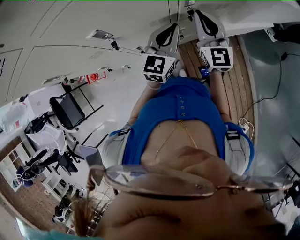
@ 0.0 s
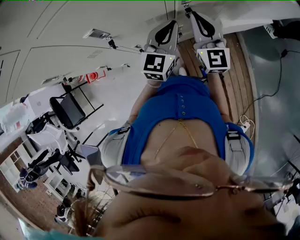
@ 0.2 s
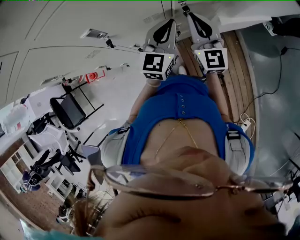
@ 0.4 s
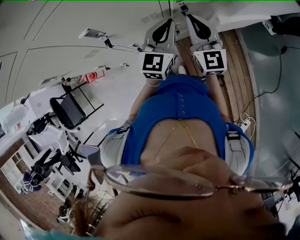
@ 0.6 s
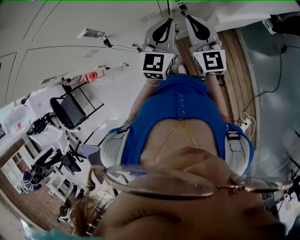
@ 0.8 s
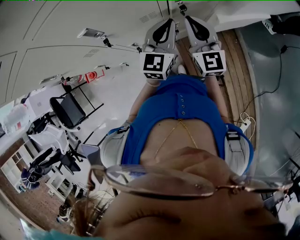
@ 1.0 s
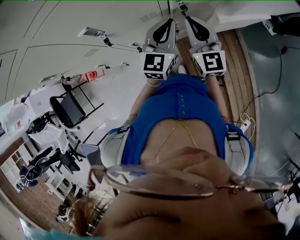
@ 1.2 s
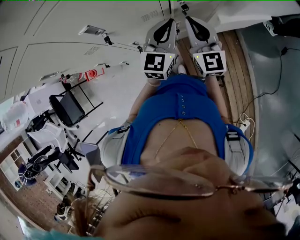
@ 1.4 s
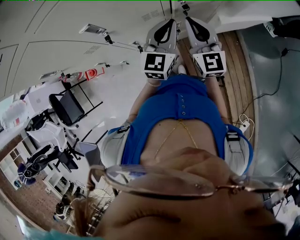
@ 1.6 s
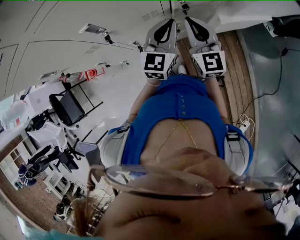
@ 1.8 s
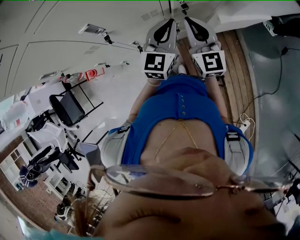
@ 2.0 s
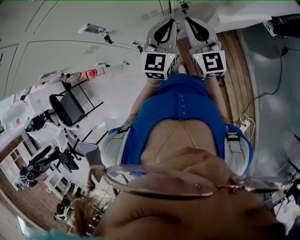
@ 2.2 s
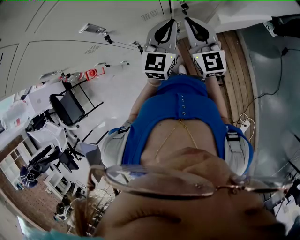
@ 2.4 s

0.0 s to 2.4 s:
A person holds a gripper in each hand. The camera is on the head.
0.0 to 1.2 s: The right gripper changes place by roughly 5 cm.
1.2 to 2.4 s: The two grippers keep their place.

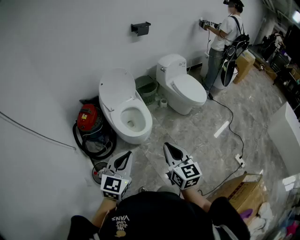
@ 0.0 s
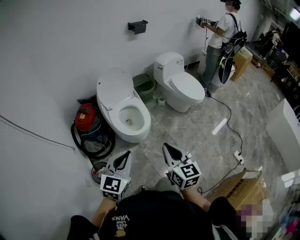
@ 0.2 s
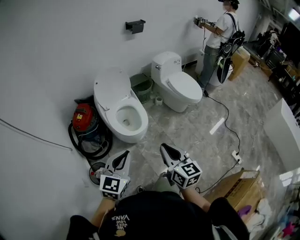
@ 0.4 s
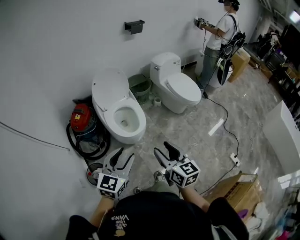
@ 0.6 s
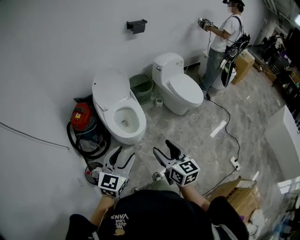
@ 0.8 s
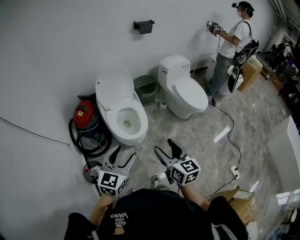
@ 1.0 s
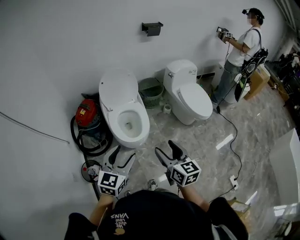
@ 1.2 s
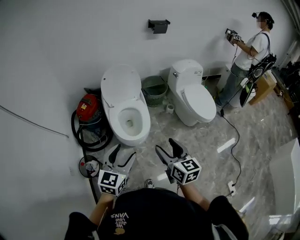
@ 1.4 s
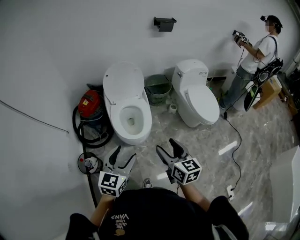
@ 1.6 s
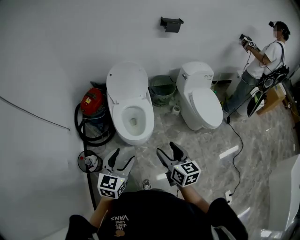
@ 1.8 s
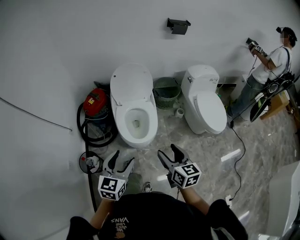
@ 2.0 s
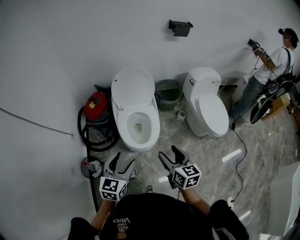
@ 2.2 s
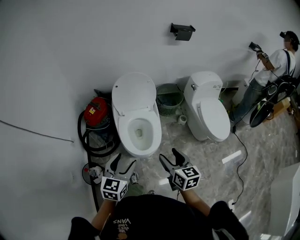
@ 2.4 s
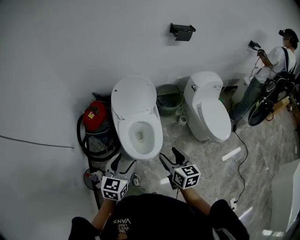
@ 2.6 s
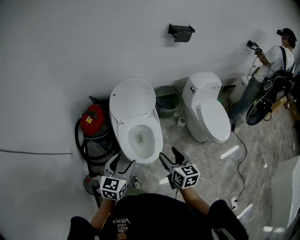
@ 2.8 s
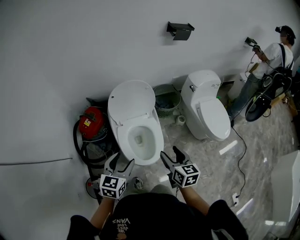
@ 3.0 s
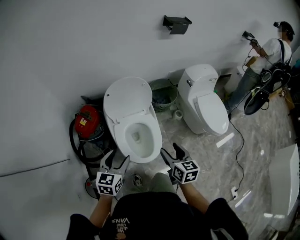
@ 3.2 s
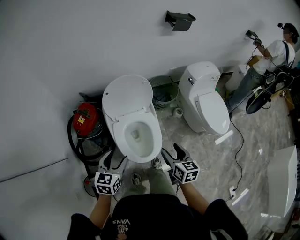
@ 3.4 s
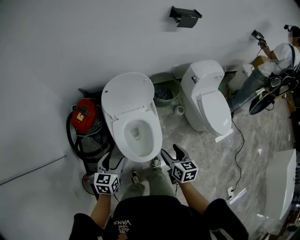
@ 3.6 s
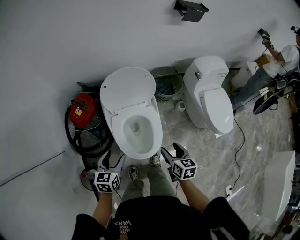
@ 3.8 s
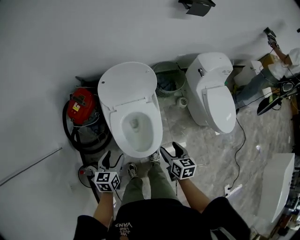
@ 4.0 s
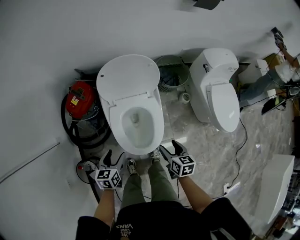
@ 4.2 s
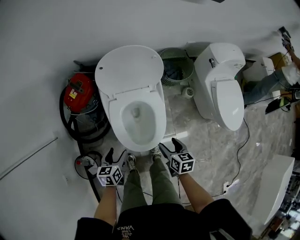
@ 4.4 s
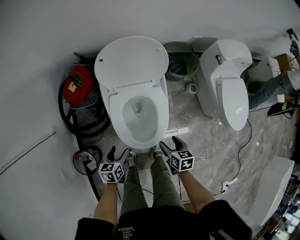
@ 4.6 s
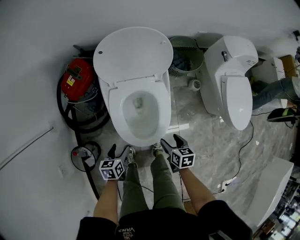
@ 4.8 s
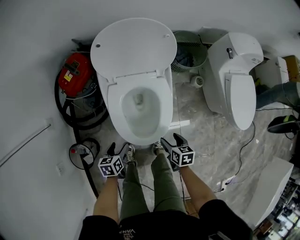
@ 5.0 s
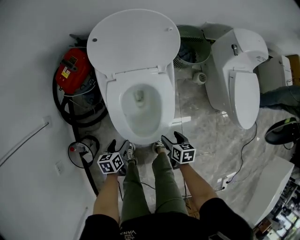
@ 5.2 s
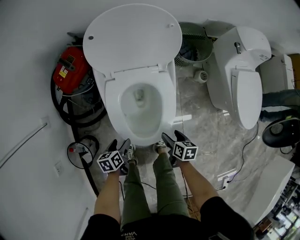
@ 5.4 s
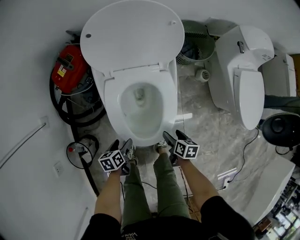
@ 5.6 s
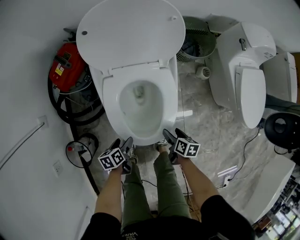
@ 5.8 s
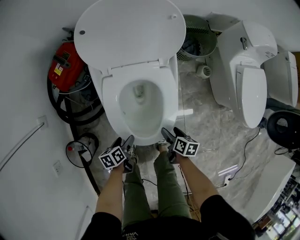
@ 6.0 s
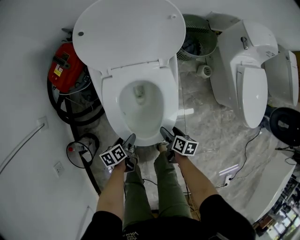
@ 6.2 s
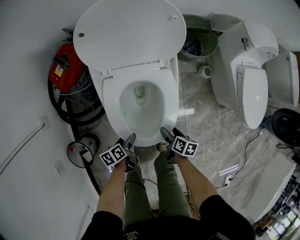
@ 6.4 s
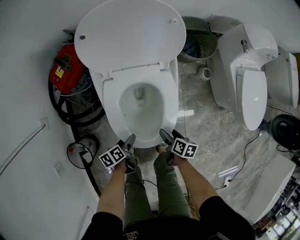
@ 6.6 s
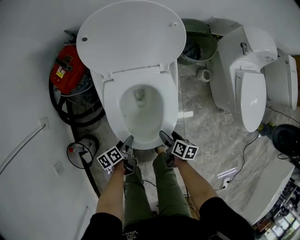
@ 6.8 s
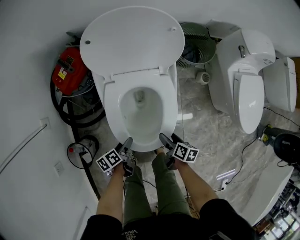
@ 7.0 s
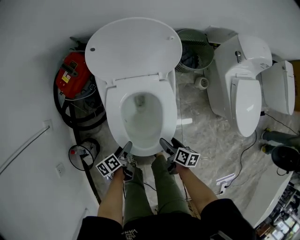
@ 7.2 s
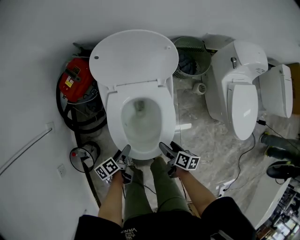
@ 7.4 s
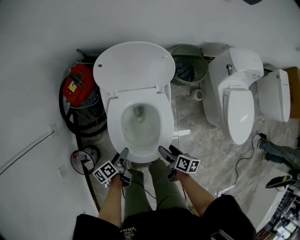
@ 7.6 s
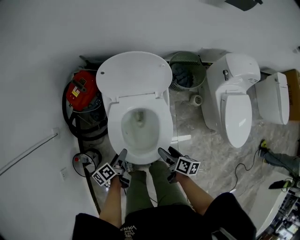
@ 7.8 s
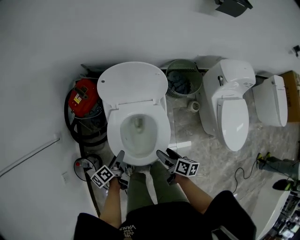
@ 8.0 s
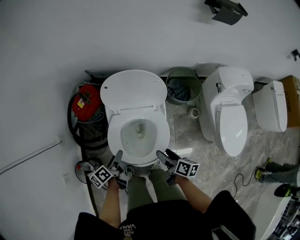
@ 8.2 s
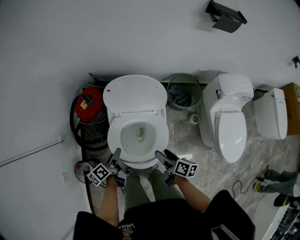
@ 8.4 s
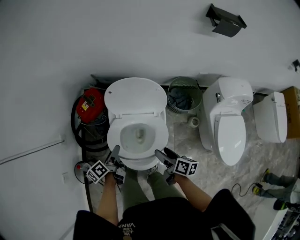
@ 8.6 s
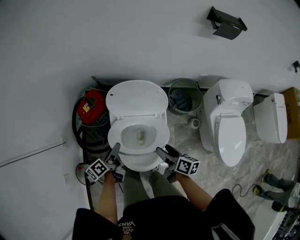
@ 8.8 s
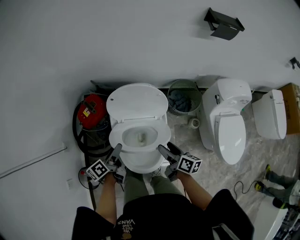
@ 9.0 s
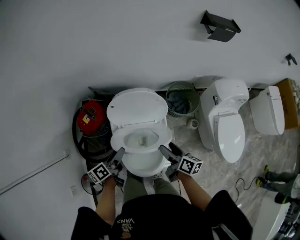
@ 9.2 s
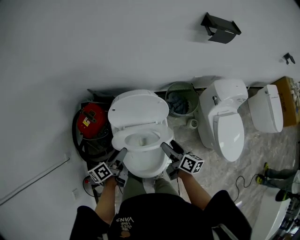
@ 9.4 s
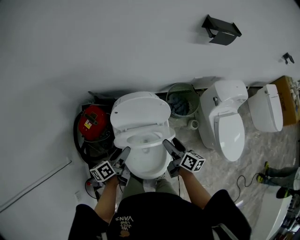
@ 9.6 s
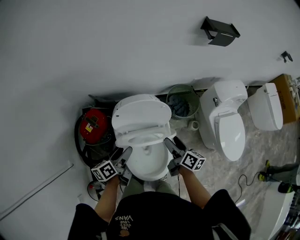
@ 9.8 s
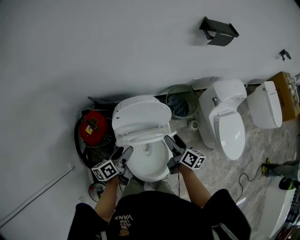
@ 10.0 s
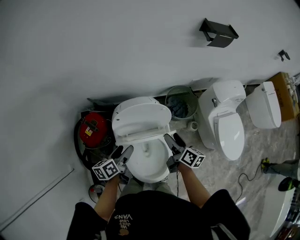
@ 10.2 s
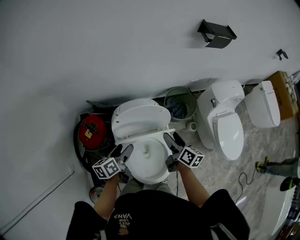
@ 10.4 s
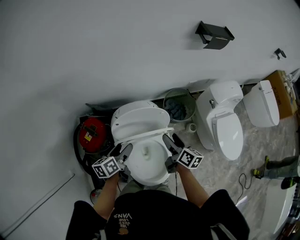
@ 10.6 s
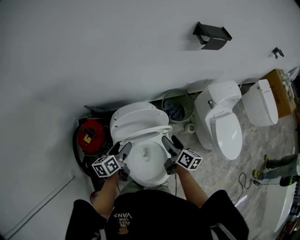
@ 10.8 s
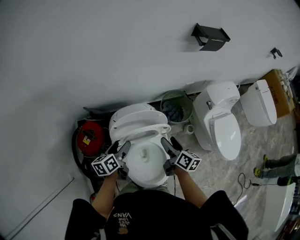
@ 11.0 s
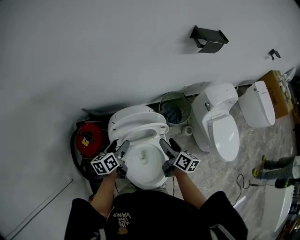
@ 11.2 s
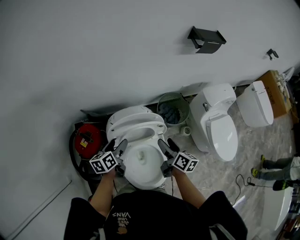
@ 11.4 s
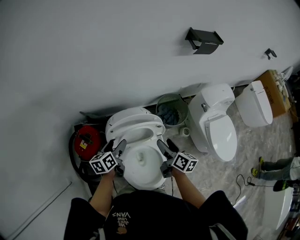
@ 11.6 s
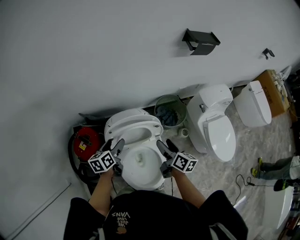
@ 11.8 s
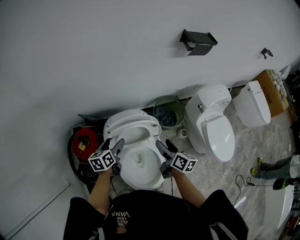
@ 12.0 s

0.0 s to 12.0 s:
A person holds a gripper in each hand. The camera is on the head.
0.0 to 1.6 s: The two grippers go approximately 15 cm forward and to the right. The left gripper changes its angle by some 20 degrees, and opens its fingers. Meanwhile the right gripper changes its angle by roughly 20 degrees, and opens.
1.6 to 3.0 s: The right gripper heads forward, covering about 25 cm. The left gripper moves forward and to the left, about 25 cm.
3.0 to 4.4 s: Both grippers travel together downward, approximately 25 cm. The right gripper rotates about 20 degrees. Meanwhile the left gripper rotates about 40 degrees.
4.4 to 6.0 s: The two grippers go approximately 20 cm downward. The right gripper changes its angle by approximately 30 degrees. The left gripper rotates roughly 30 degrees.
6.0 to 7.6 s: The two grippers go about 15 cm upward. The left gripper changes its angle by approximately 20 degrees.
7.6 to 9.0 s: Both grippers move upward and forward, roughly 25 cm. The left gripper changes its angle by about 20 degrees, while the right gripper swivels about 20 degrees.
9.0 to 10.4 s: Both grippers travel together forward, approximately 10 cm. The right gripper changes its angle by roughly 20 degrees, while the left gripper changes its angle by some 30 degrees.
10.4 to 12.0 s: The left gripper shifts roughly 5 cm forward.

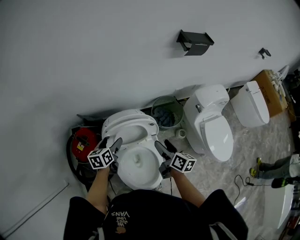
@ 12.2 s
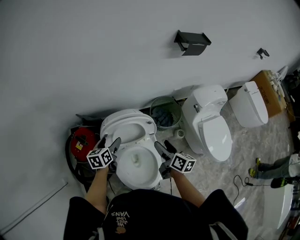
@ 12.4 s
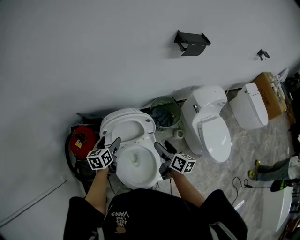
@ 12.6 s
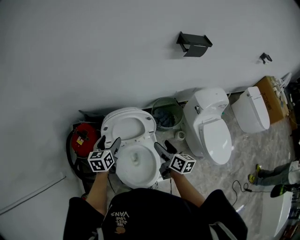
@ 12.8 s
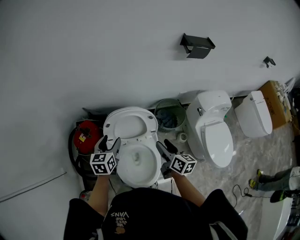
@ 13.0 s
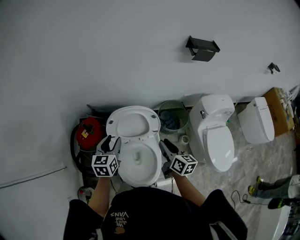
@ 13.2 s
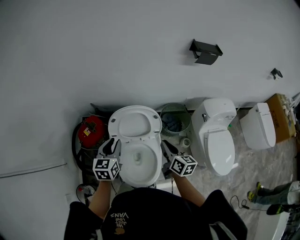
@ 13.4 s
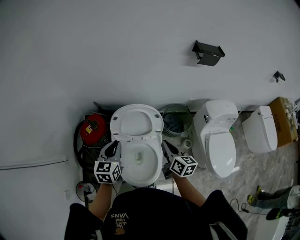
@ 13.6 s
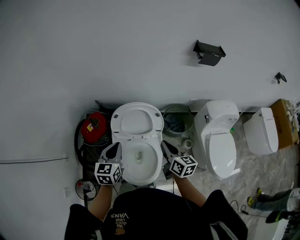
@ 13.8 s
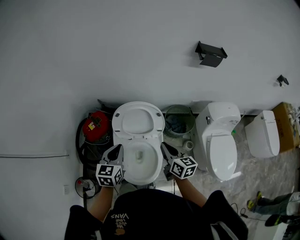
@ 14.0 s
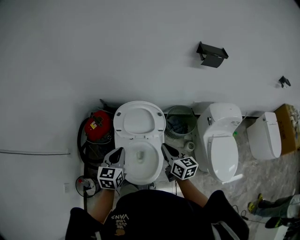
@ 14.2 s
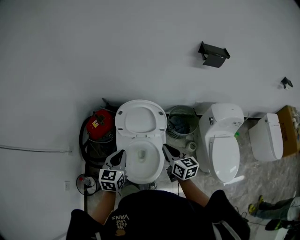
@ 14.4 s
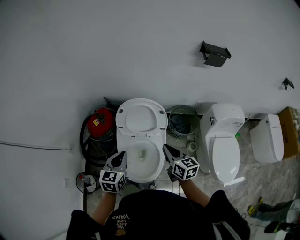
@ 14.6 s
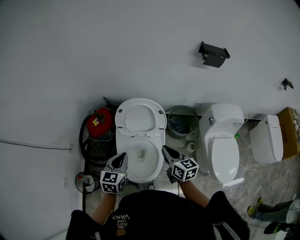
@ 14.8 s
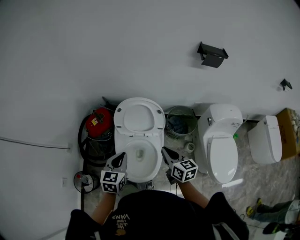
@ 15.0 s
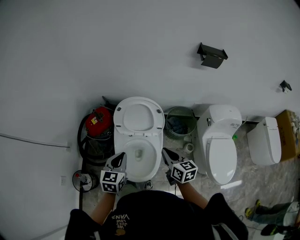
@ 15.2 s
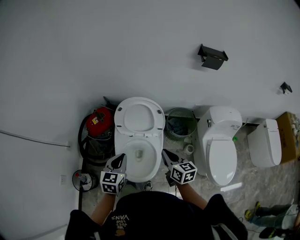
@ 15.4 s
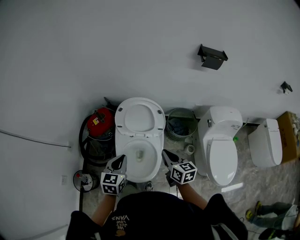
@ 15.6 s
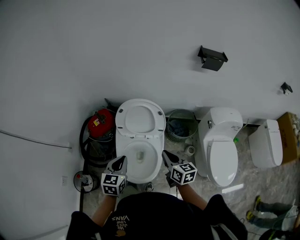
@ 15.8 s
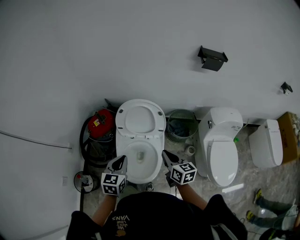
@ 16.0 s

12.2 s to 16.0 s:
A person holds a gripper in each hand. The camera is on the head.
12.2 to 13.4 s: The left gripper is displaced backward and upward by some 15 cm, rotates about 20 degrees, and closes. The right gripper heads backward, covering roughly 5 cm, and closes up.
13.4 to 14.8 s: The right gripper is displaced backward by about 5 cm; the left gripper moves backward, some 15 cm.
14.8 to 16.0 s: There are only small adjustments of the grippers.

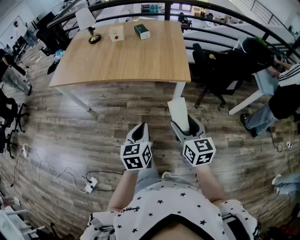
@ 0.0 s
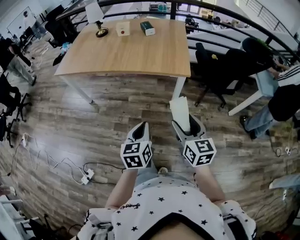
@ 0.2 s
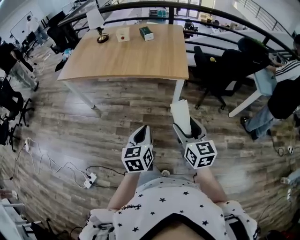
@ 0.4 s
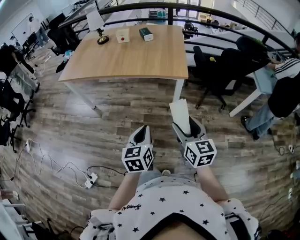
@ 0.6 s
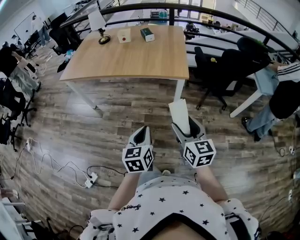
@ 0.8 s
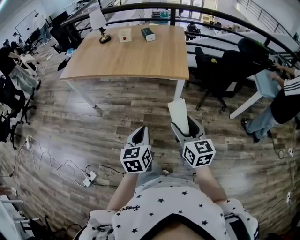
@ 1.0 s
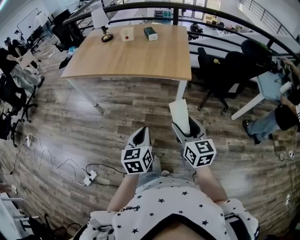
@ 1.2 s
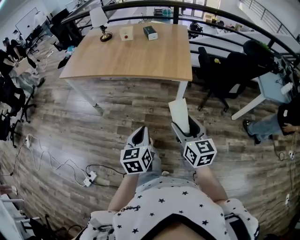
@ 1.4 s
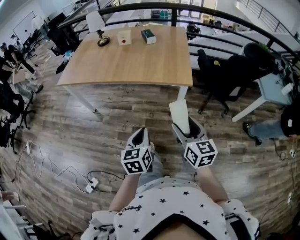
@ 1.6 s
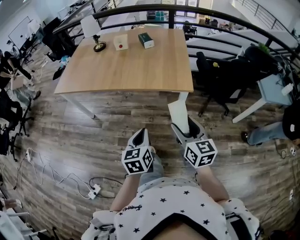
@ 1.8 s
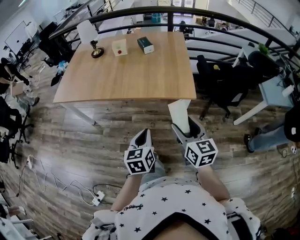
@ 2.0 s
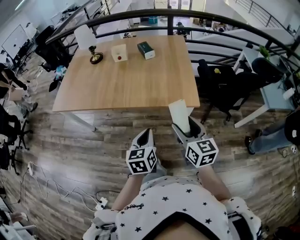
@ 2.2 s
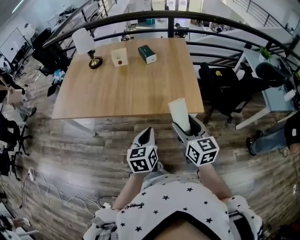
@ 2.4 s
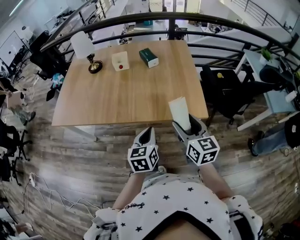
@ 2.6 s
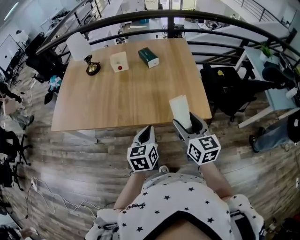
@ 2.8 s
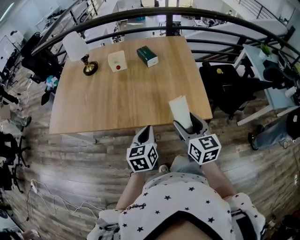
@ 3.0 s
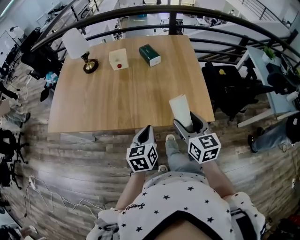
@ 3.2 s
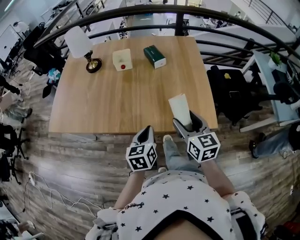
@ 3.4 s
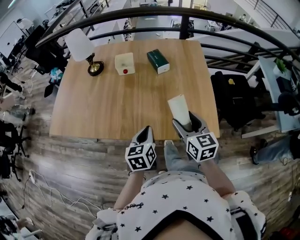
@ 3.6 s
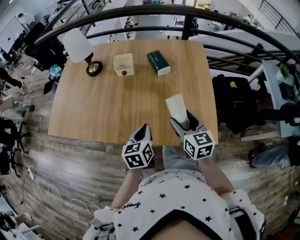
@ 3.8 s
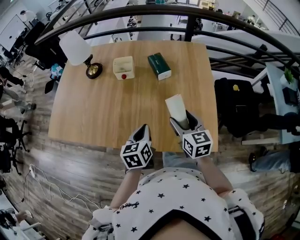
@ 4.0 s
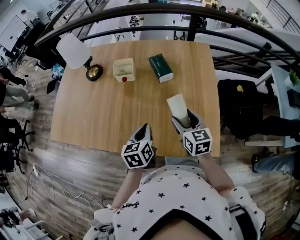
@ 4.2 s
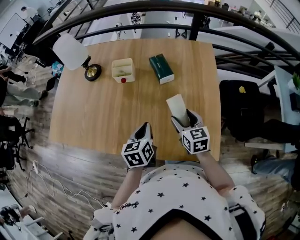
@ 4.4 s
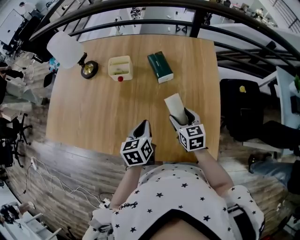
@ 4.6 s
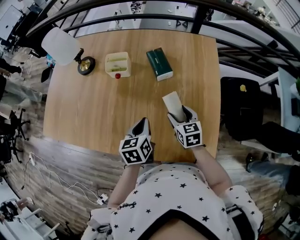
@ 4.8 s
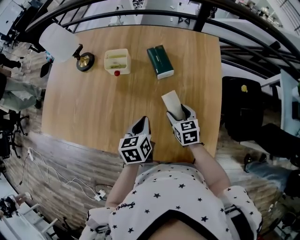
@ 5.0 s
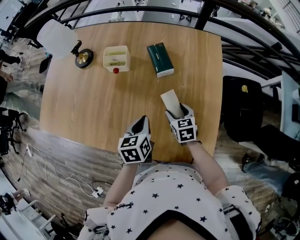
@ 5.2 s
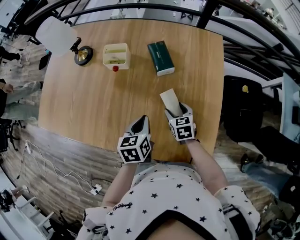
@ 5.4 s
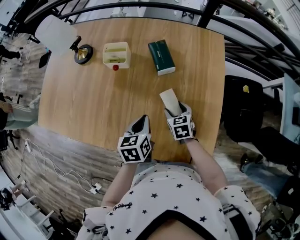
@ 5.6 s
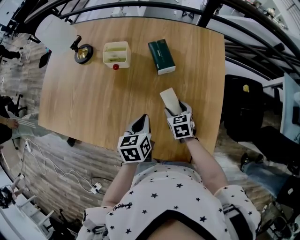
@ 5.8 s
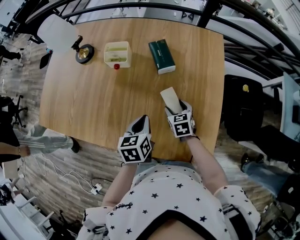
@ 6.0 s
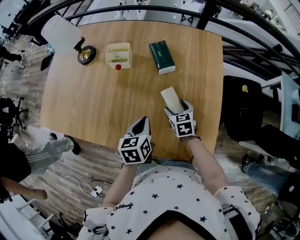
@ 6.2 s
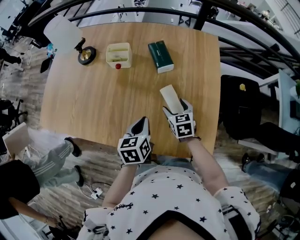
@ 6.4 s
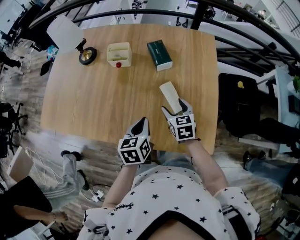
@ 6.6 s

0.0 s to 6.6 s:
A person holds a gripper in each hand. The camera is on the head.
0.0 to 1.6 s: The right gripper moves roughly 10 cm backward and comes back. Meanwhile the left gripper moves some 10 cm backward and comes back.
1.6 to 3.2 s: The grippers both shift forward by roughly 35 cm.
3.2 to 5.0 s: The right gripper shifts about 35 cm forward and downward, and rotates about 30 degrees; the left gripper shifts some 25 cm forward.
5.0 to 6.6 s: The left gripper travels backward by roughly 5 cm; the right gripper moves about 5 cm.
